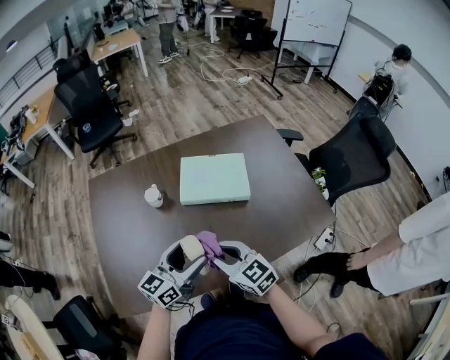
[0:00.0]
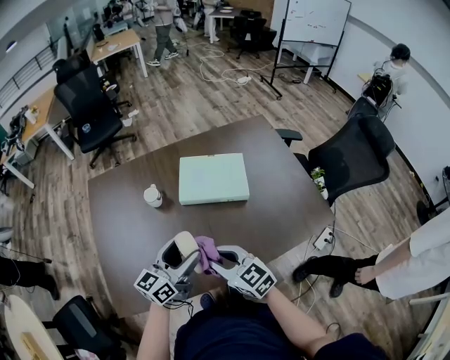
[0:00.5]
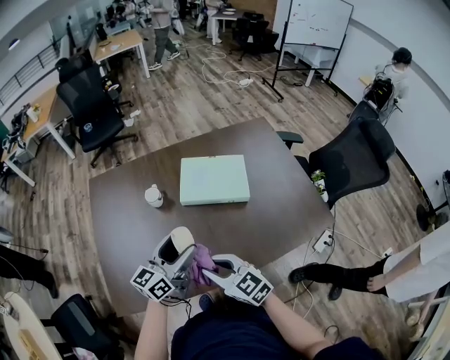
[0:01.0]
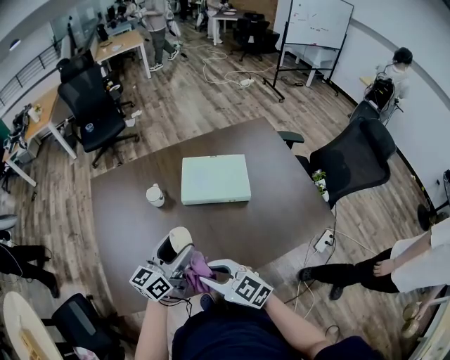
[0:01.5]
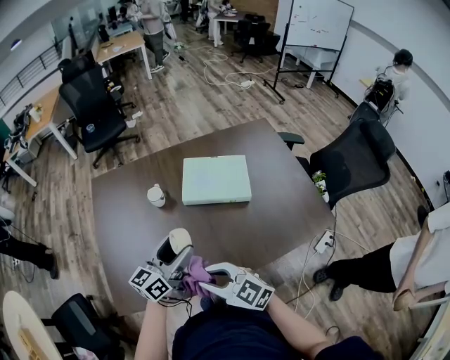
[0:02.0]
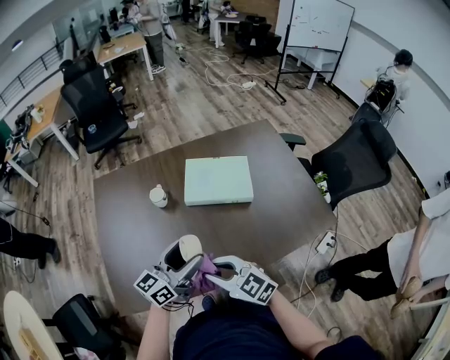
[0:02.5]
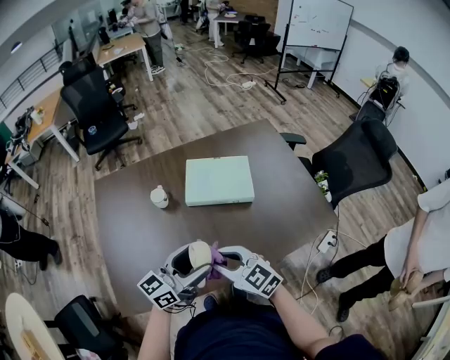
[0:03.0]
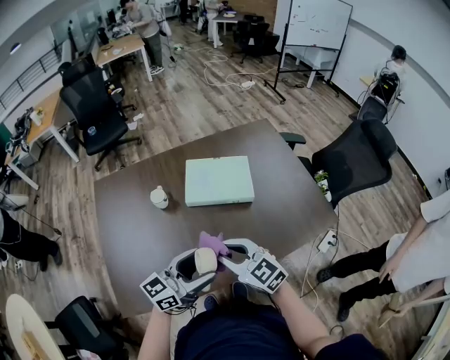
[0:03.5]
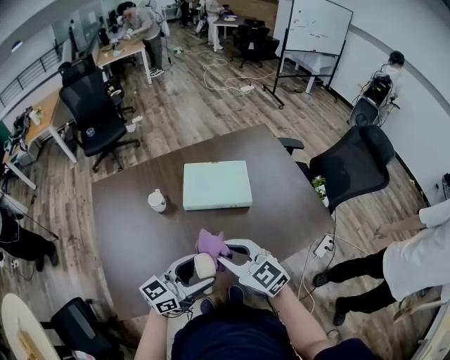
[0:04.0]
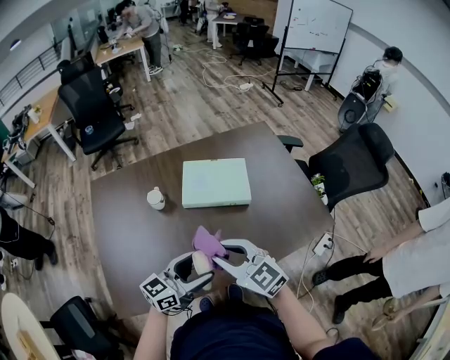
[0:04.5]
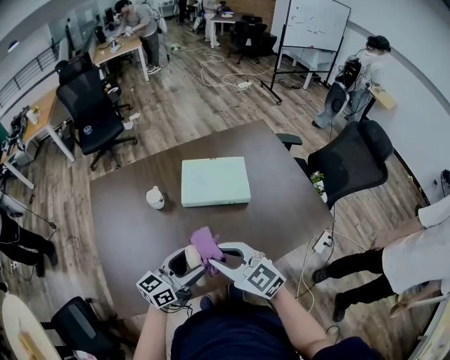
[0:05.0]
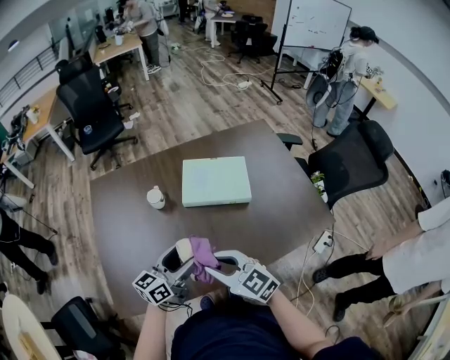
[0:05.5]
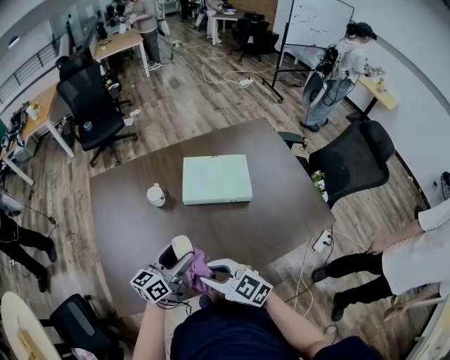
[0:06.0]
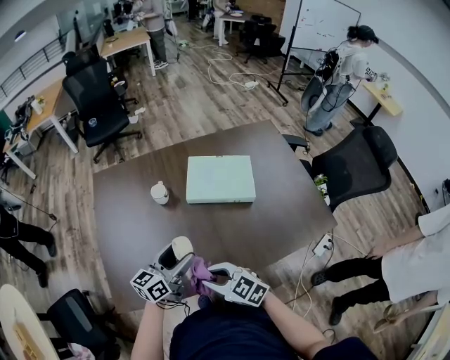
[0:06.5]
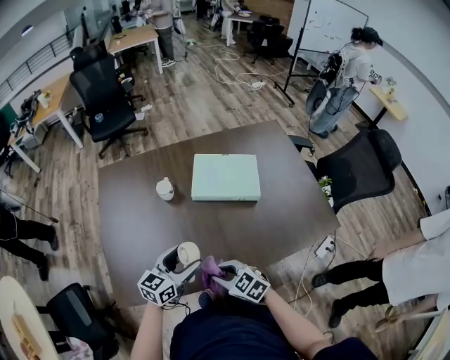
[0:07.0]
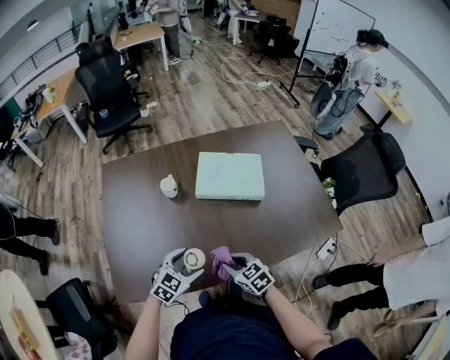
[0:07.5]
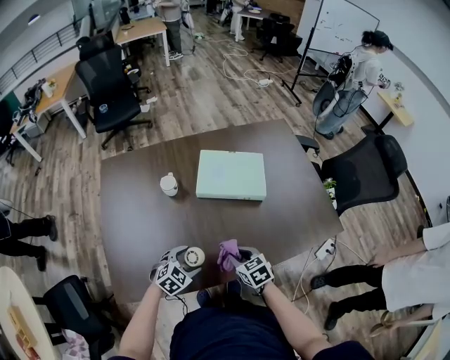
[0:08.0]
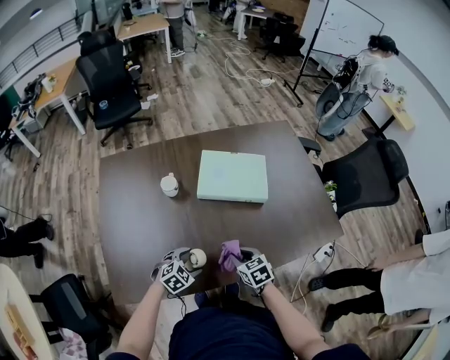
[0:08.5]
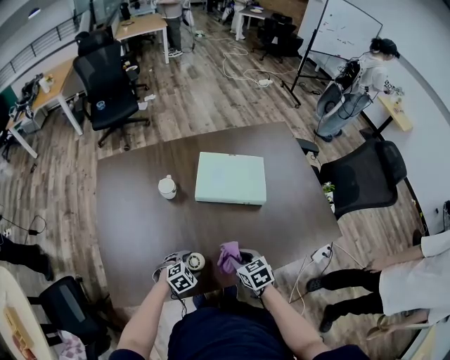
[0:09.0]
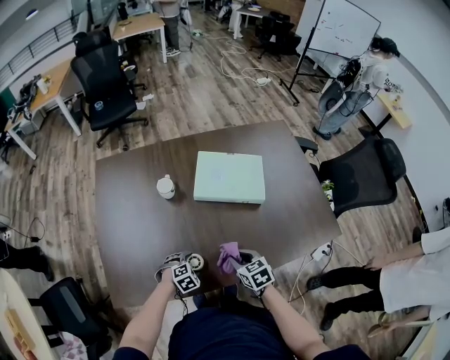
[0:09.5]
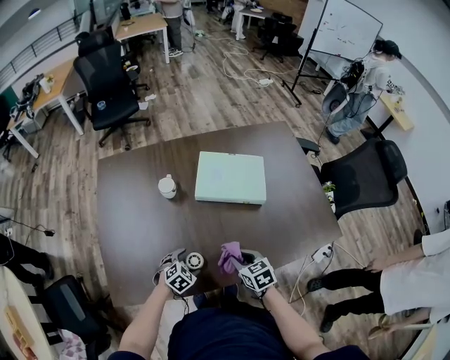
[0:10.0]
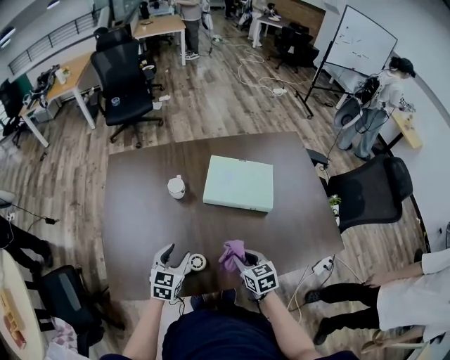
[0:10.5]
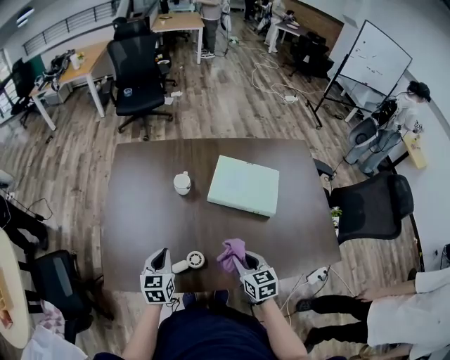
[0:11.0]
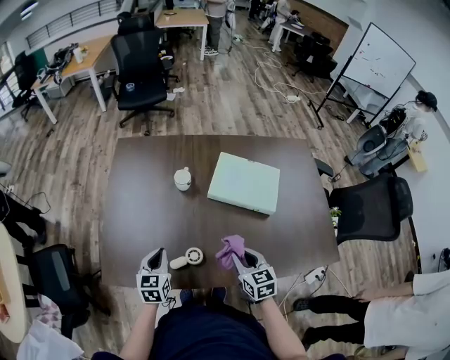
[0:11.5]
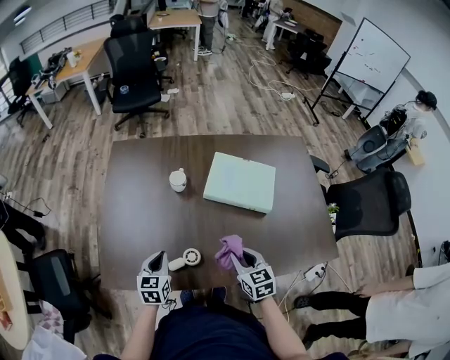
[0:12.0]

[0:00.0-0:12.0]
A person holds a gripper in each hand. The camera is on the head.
0:00.0 to 0:02.0: The right gripper moves backward and to the left, roughly 10 cm.
0:02.0 to 0:04.0: The left gripper goes approximately 10 cm backward and to the right, and turns by roughly 20 degrees. Meanwhile the right gripper travels forward and to the right by roughly 10 cm.
0:04.0 to 0:06.0: The left gripper shifts some 10 cm to the left and forward, and rotates roughly 20 degrees. The right gripper shifts about 10 cm to the left, downward and backward.
0:06.0 to 0:08.0: The right gripper moves downward and to the right, some 20 cm, and turns by roughly 30 degrees. Meanwhile the left gripper goes some 15 cm downward, and tilts its fingers about 50 degrees downward.
0:08.0 to 0:10.0: The left gripper moves downward, approximately 10 cm.
0:10.0 to 0:12.0: The left gripper travels upward and to the left by roughly 15 cm, swivels some 60 degrees, and closes; the right gripper is displaced upward by approximately 5 cm.

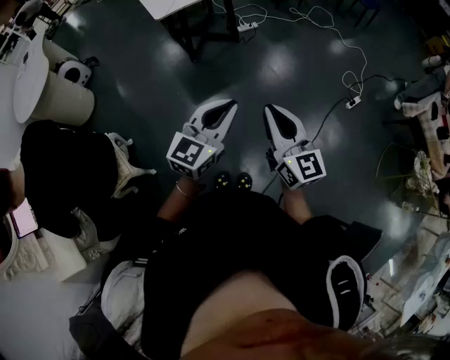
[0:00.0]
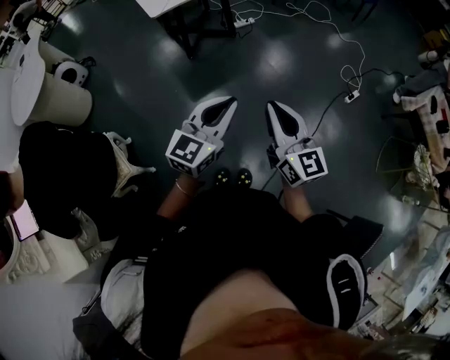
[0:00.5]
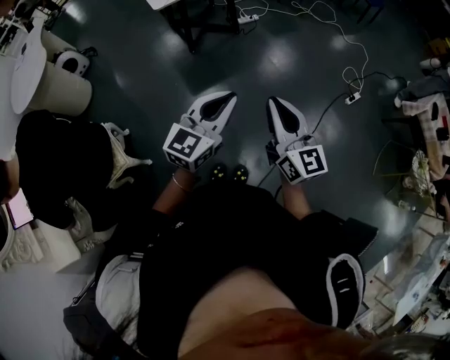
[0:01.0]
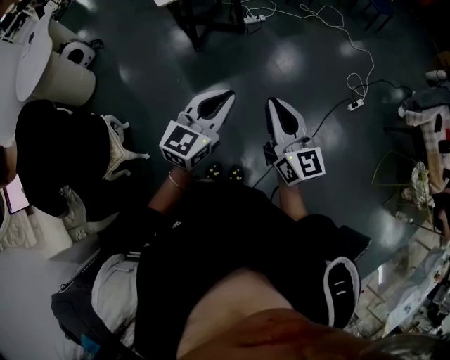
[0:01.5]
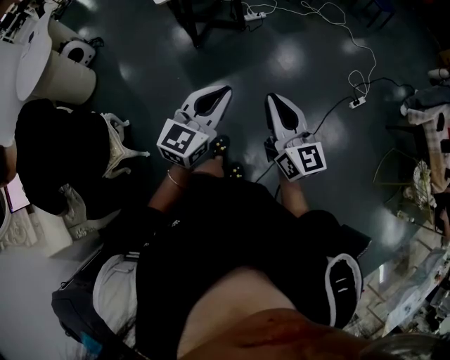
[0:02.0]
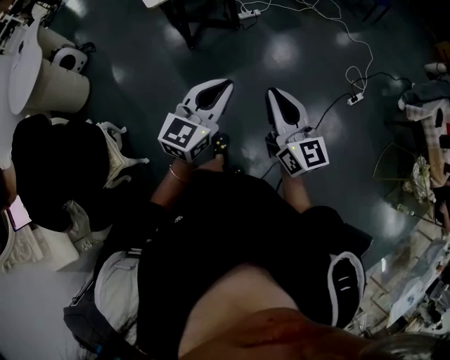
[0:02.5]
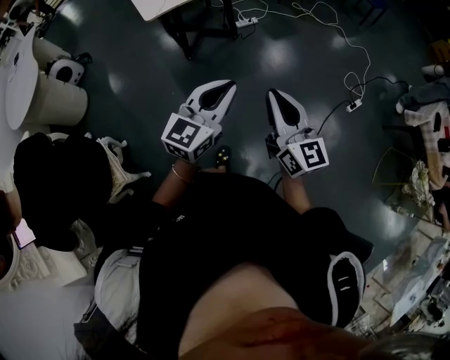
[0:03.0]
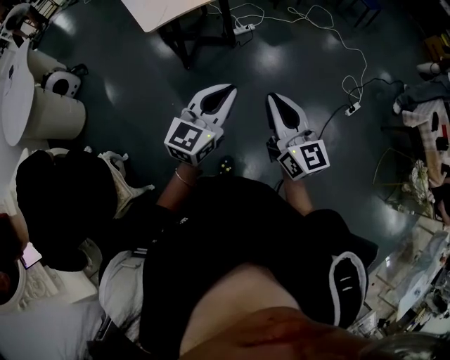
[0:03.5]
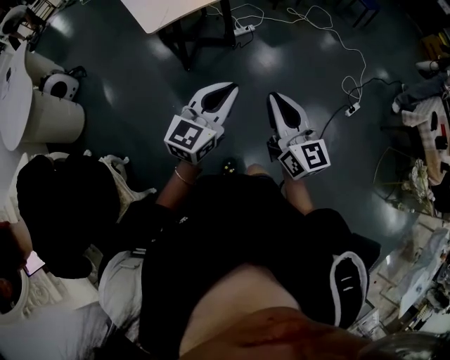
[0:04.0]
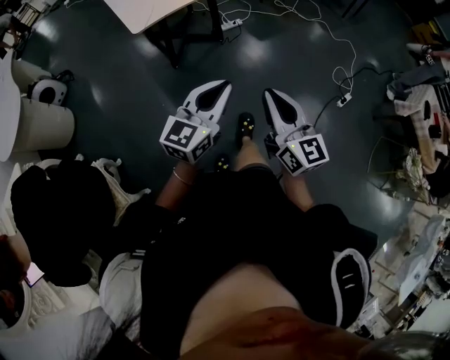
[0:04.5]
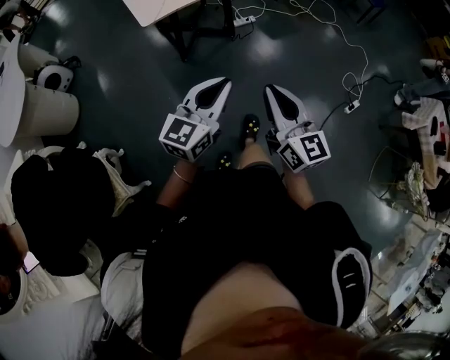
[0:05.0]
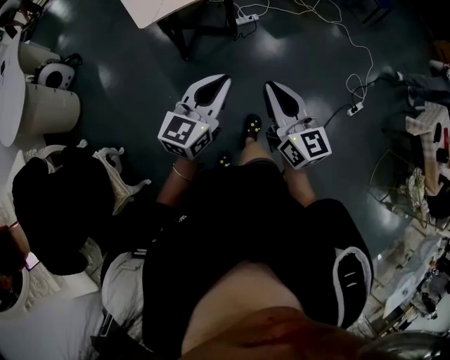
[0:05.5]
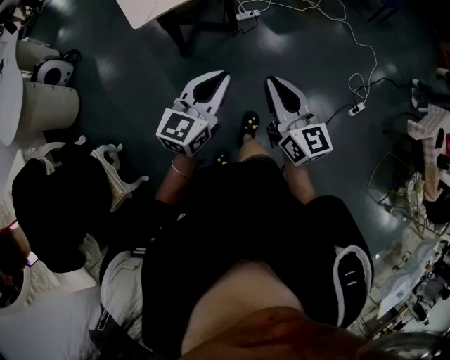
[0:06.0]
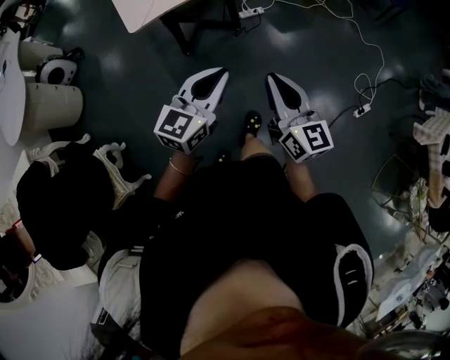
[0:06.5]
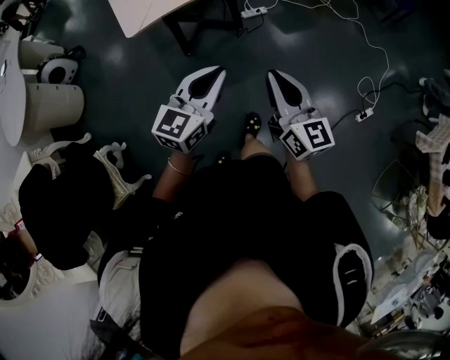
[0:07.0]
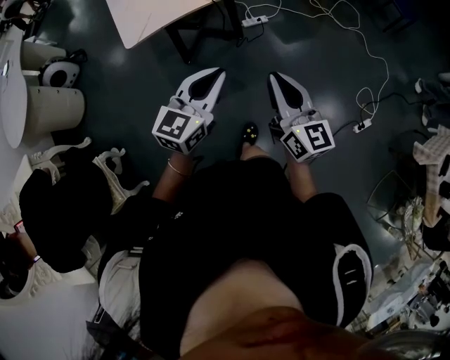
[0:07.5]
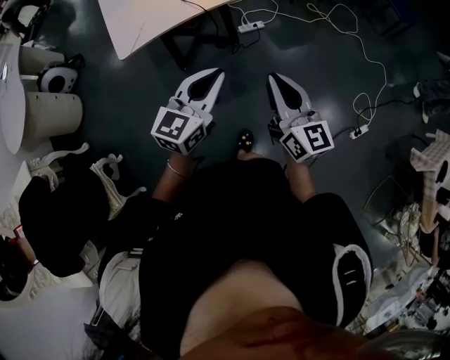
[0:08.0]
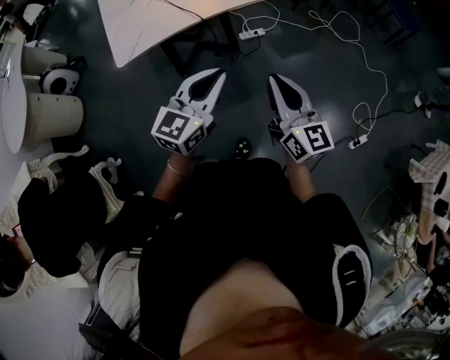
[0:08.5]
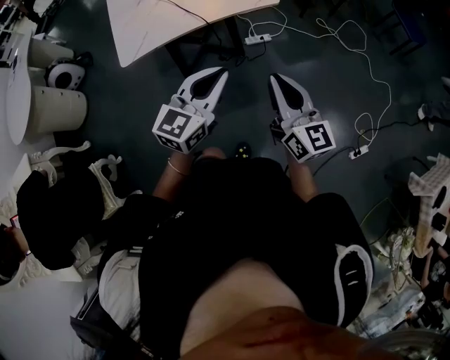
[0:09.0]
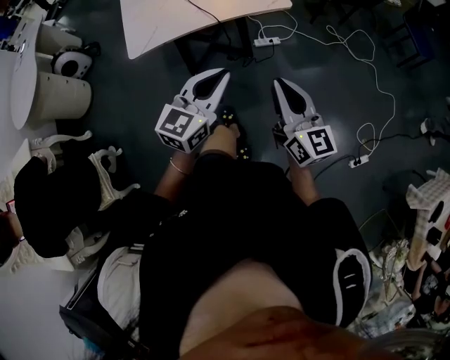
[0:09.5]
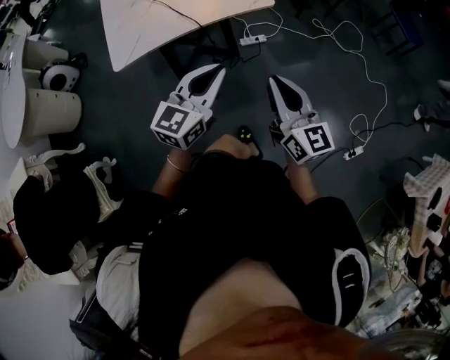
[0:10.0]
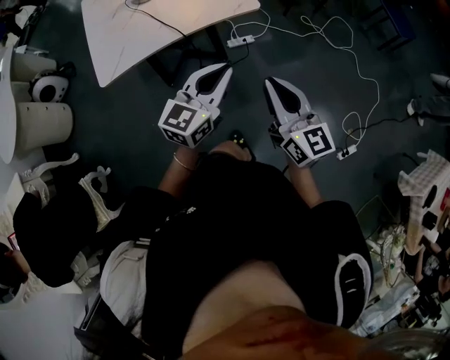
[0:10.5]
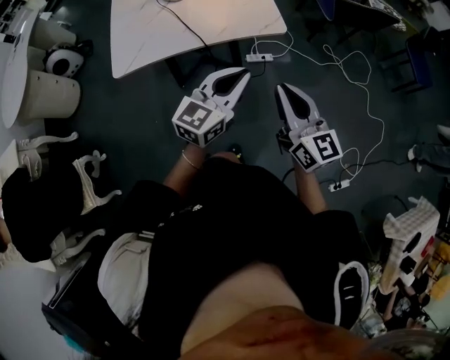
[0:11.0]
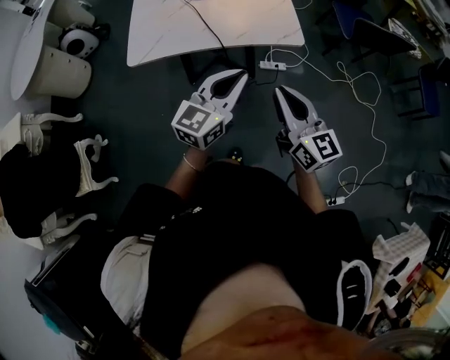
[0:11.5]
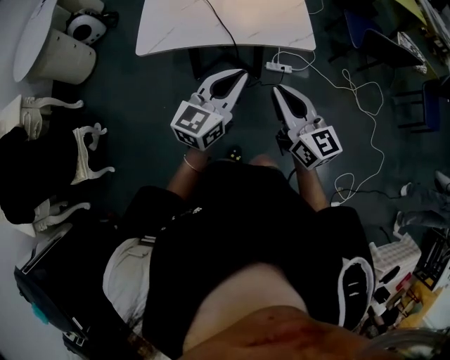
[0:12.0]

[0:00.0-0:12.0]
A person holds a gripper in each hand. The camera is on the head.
0:00.0 to 0:02.0: The right gripper travels to the right by about 5 cm.
0:02.0 to 0:04.0: Both grippers travel together forward and to the left, roughly 20 cm.
0:04.0 to 0:06.0: Both grippers move forward, about 10 cm.
0:06.0 to 0:08.0: The left gripper moves forward, about 15 cm. The right gripper heads forward and to the right, covering some 20 cm.
0:08.0 to 0:10.0: Both grippers travel together forward, some 5 cm.
0:10.0 to 0:12.0: Both grippers move forward, approximately 10 cm. The right gripper rotates about 30 degrees.

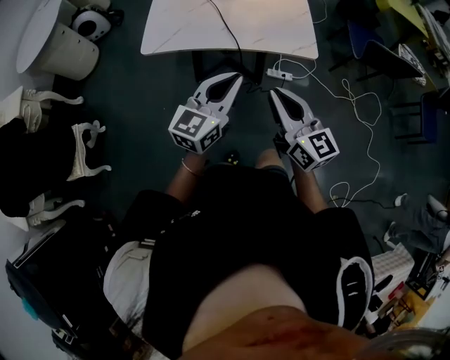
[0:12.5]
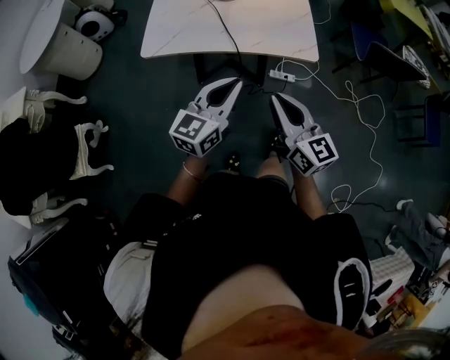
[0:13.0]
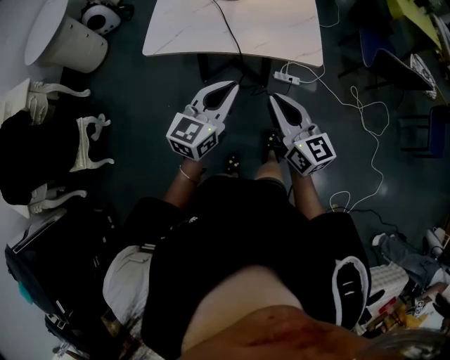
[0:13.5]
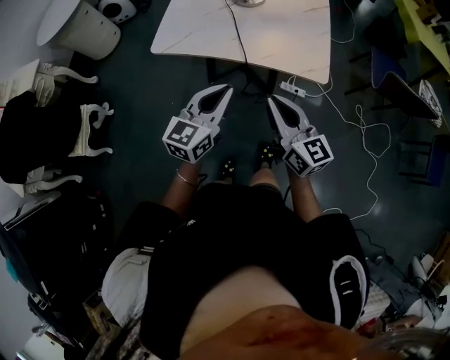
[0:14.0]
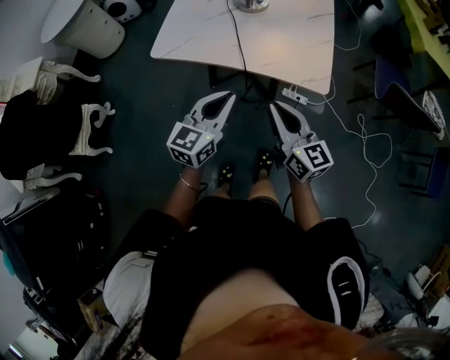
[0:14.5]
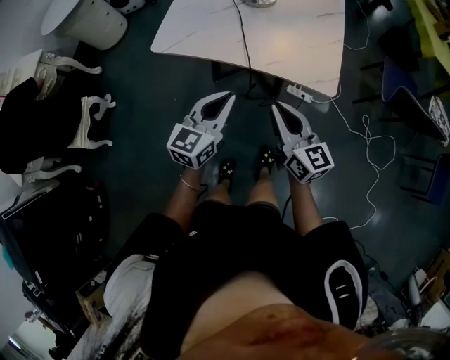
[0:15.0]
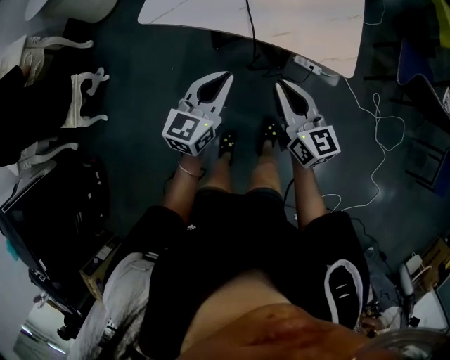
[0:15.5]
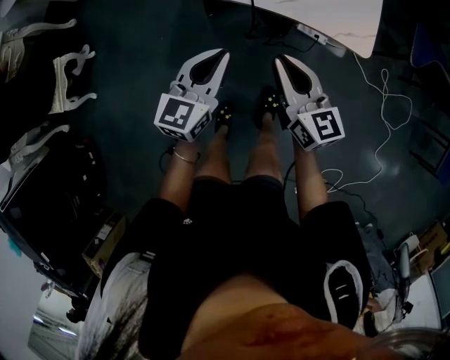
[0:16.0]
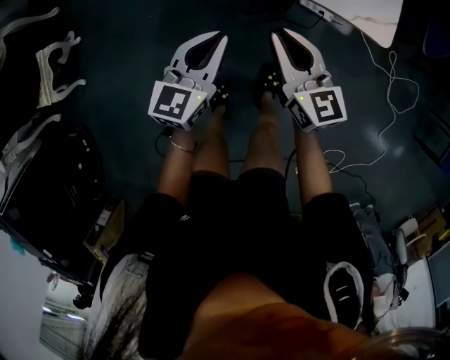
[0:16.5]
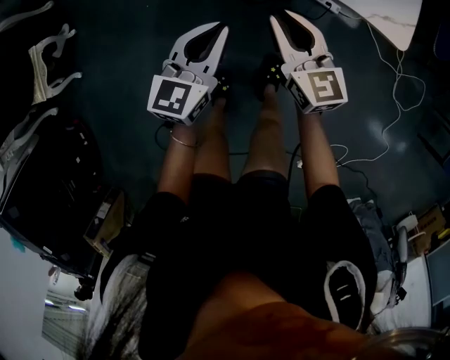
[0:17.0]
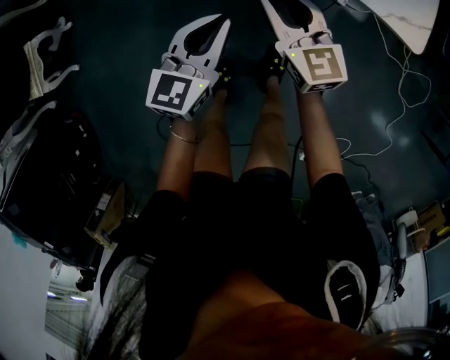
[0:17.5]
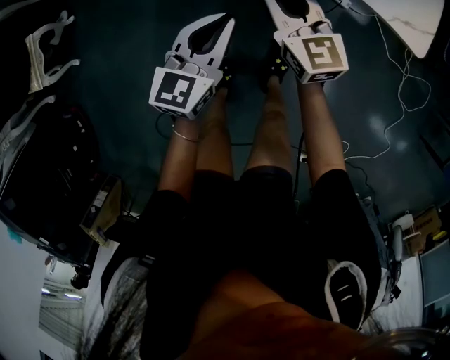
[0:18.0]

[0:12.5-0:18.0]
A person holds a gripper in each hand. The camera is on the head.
0:12.5 to 0:14.5: The left gripper heads forward, covering about 5 cm. Meanwhile the right gripper goes about 10 cm forward.
0:14.5 to 0:16.0: Both grippers travel together downward, roughly 15 cm.
0:16.0 to 0:18.0: The left gripper moves downward, some 10 cm. The right gripper goes approximately 15 cm downward, forward and to the left.
